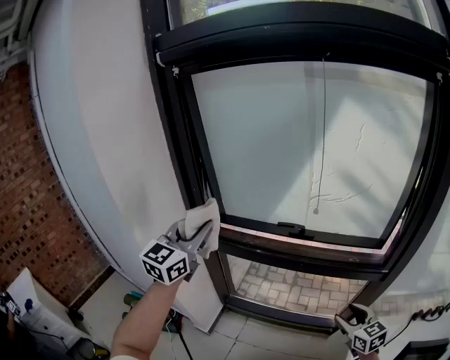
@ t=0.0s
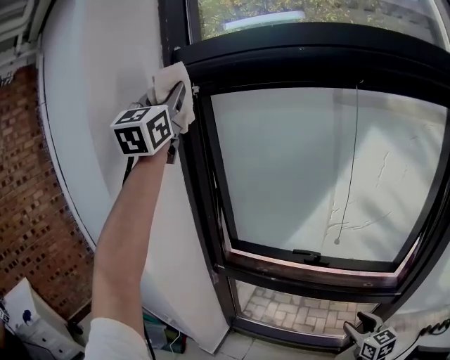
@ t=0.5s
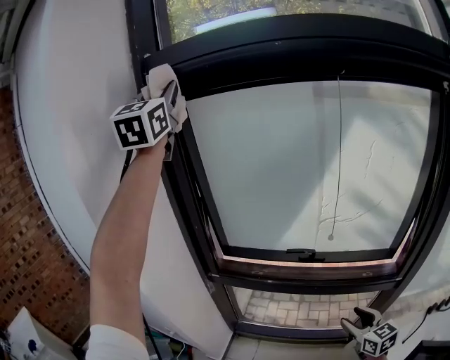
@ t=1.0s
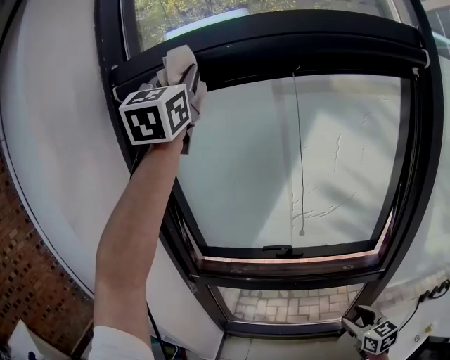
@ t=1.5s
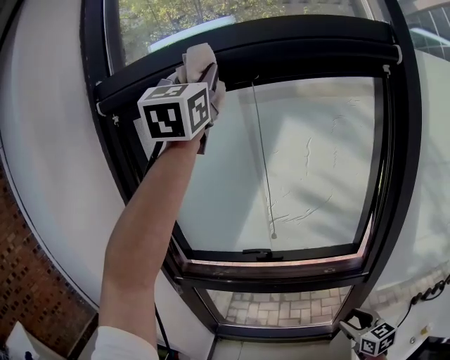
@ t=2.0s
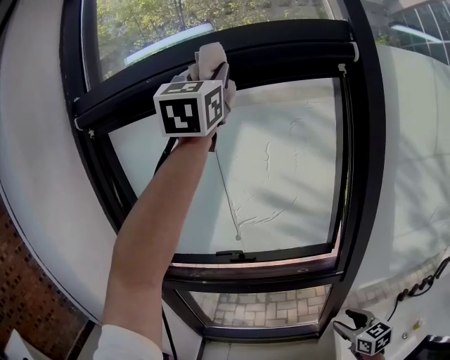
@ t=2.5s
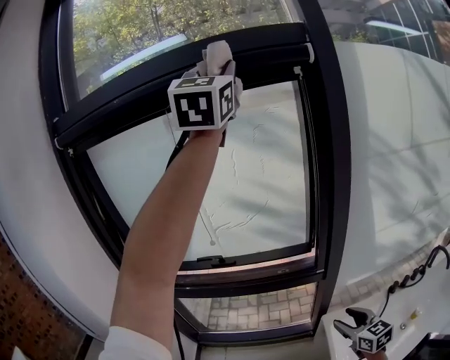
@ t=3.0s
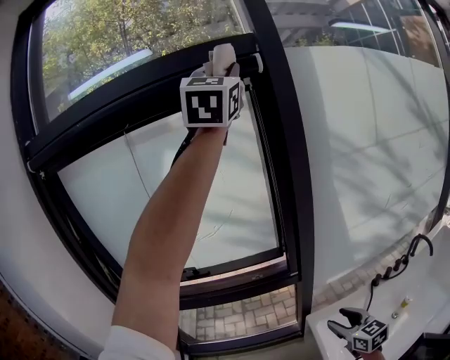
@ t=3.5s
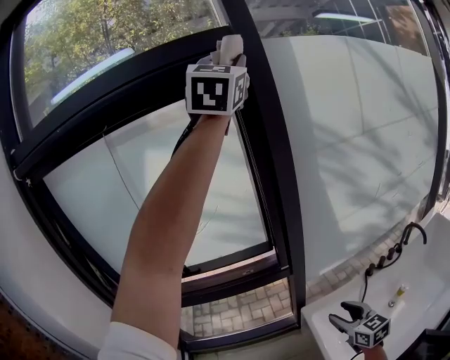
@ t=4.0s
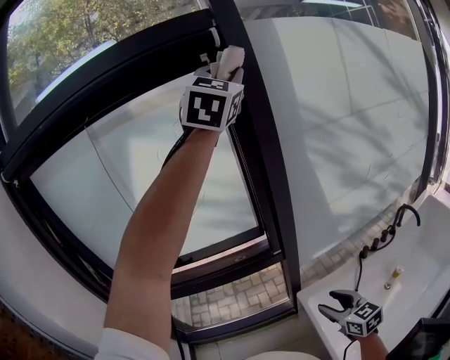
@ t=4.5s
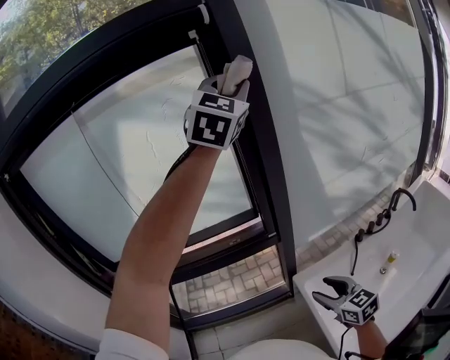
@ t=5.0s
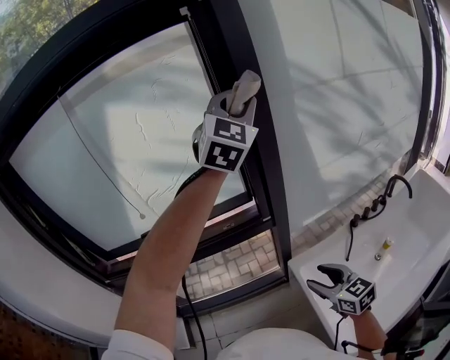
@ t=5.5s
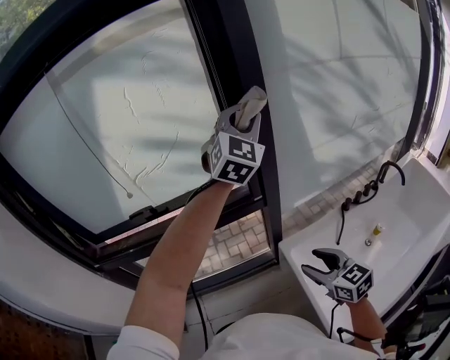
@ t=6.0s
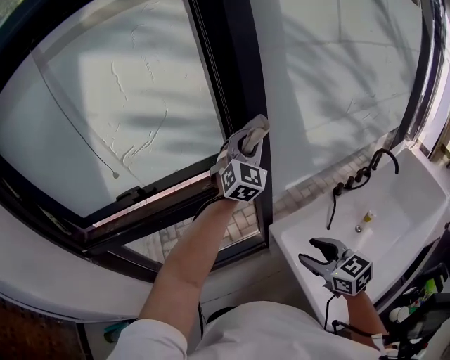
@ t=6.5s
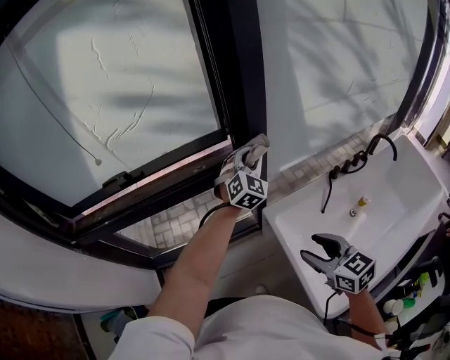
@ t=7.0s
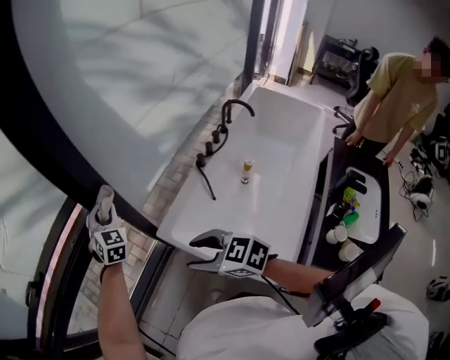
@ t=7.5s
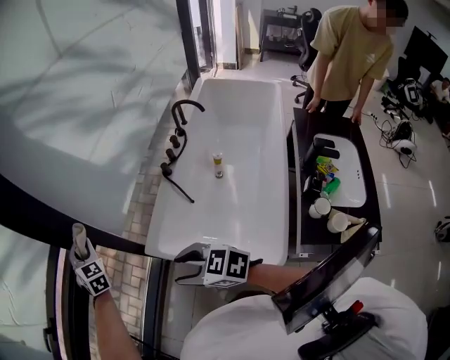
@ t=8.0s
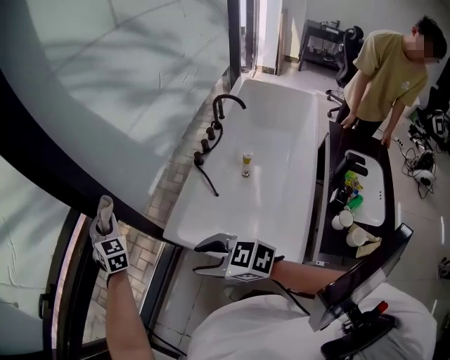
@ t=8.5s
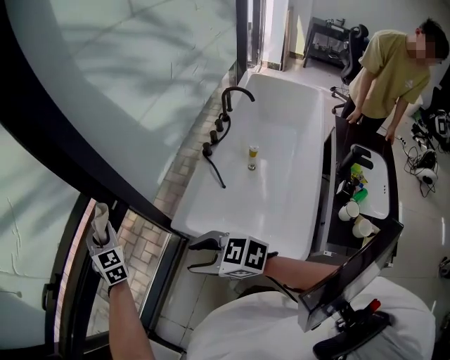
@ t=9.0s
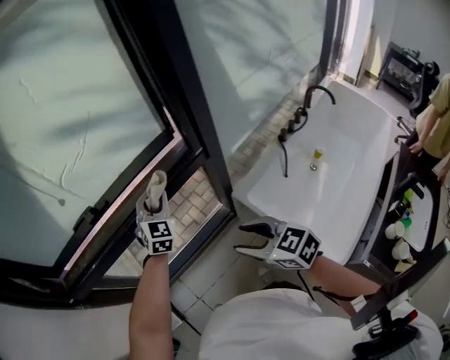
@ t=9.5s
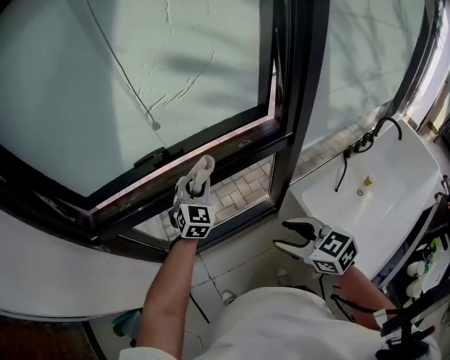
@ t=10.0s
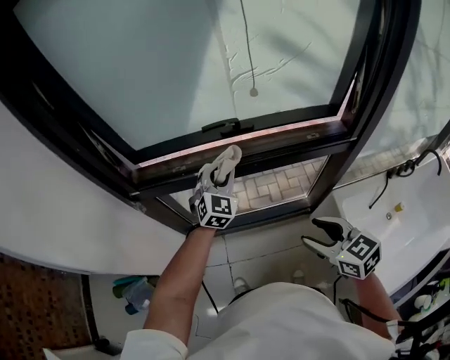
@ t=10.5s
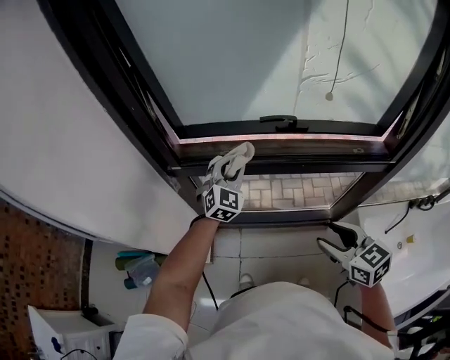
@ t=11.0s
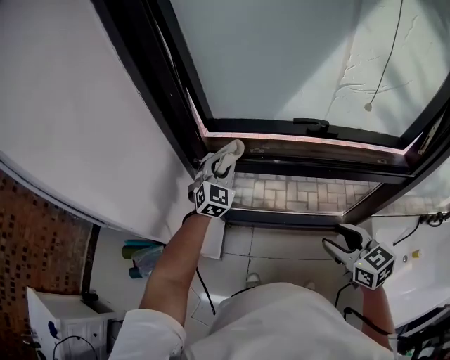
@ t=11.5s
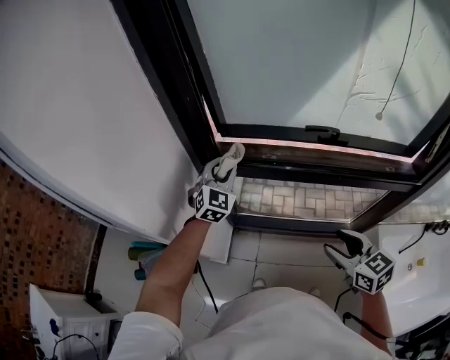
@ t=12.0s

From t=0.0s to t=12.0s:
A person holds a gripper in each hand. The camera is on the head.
From t=0.0s to t=2.0s: The right gripper moves to the right, some 5 cm, while the left gripper travels upward and to the right by some 50 cm, and rotates roughly 30 degrees.
From t=2.0s to t=4.0s: The right gripper is displaced to the right and backward by roughly 20 cm. The left gripper shifts roughly 40 cm to the right, and swivels about 20 degrees.
From t=4.0s to t=6.0s: The left gripper heads downward, covering approximately 35 cm.
From t=6.0s to t=8.0s: The right gripper goes about 5 cm downward. Meanwhile the left gripper goes about 35 cm downward, and rotates roughly 20 degrees.
From t=8.0s to t=10.0s: Both grippers travel together to the left, approximately 25 cm.
From t=10.0s to t=12.0s: The left gripper travels to the left by some 40 cm, and changes its angle by some 20 degrees; the right gripper shifts about 20 cm to the left and forward.

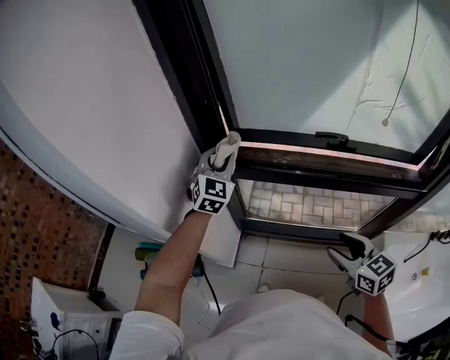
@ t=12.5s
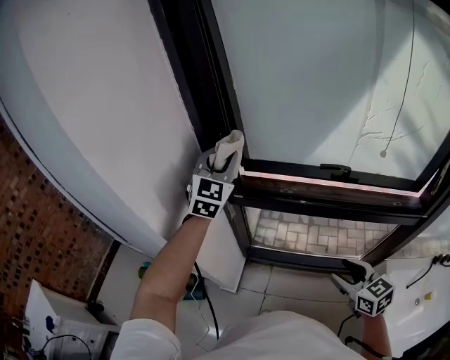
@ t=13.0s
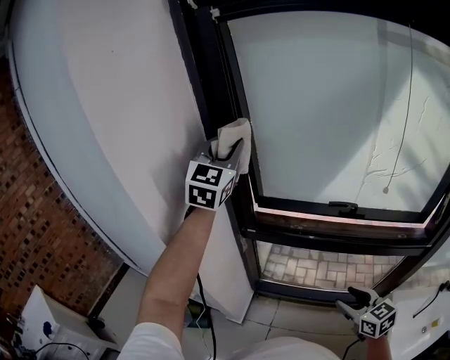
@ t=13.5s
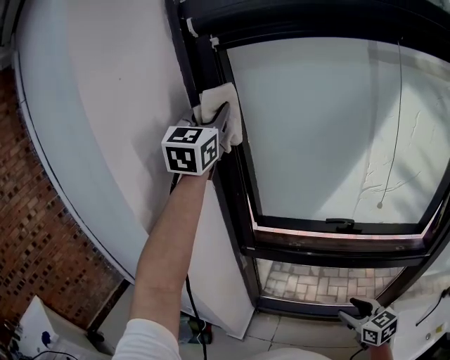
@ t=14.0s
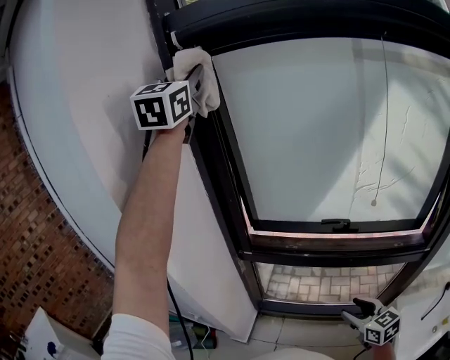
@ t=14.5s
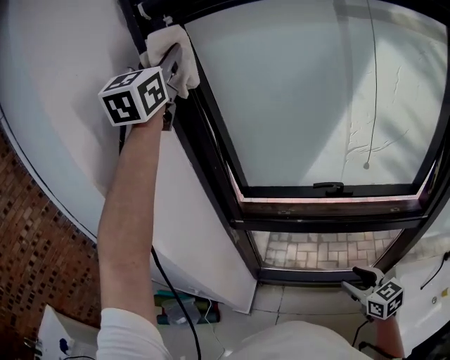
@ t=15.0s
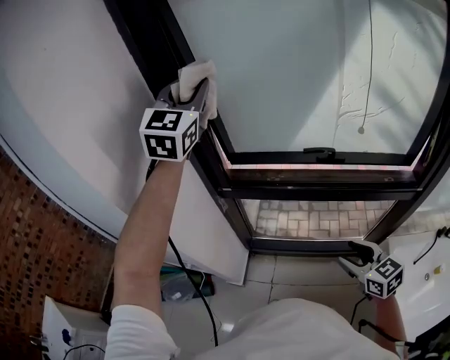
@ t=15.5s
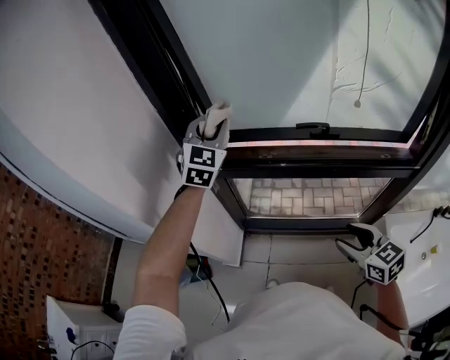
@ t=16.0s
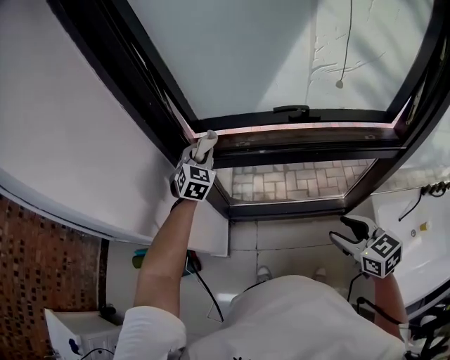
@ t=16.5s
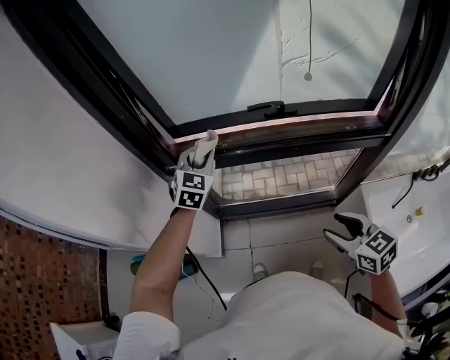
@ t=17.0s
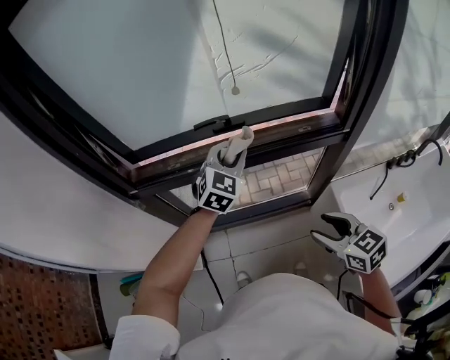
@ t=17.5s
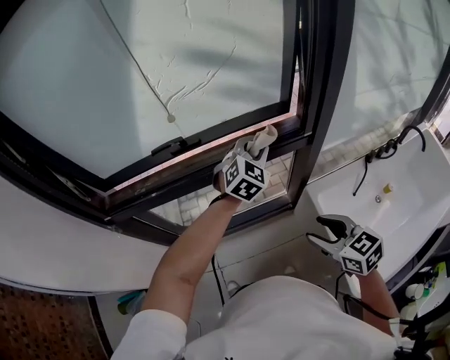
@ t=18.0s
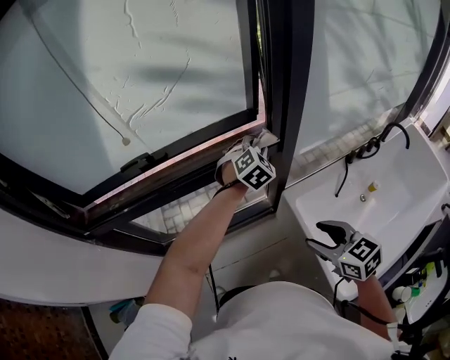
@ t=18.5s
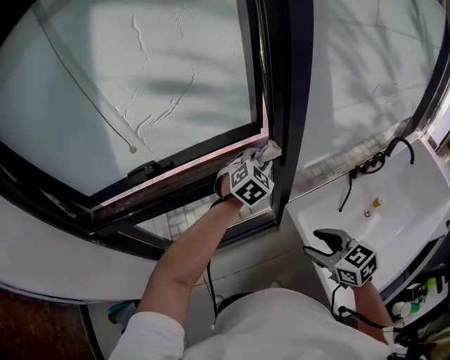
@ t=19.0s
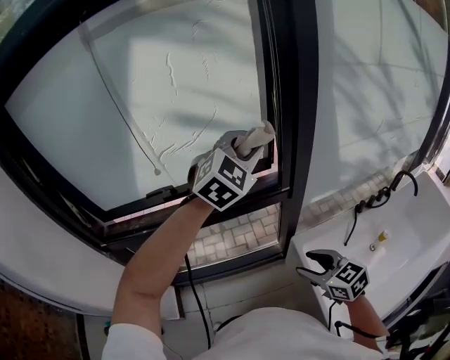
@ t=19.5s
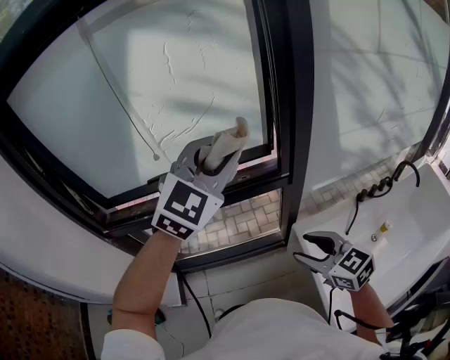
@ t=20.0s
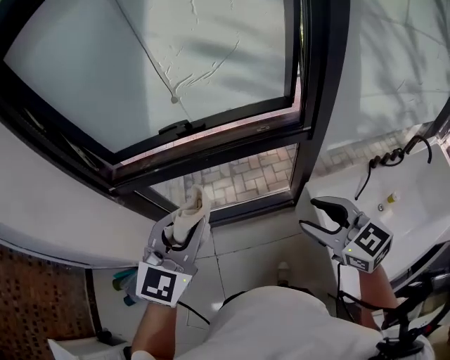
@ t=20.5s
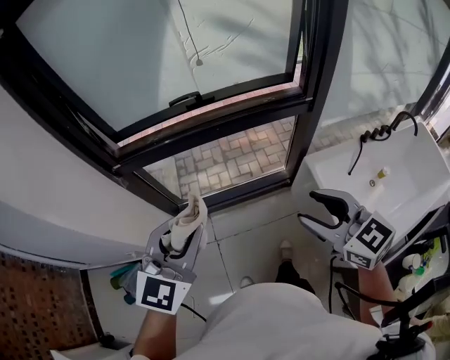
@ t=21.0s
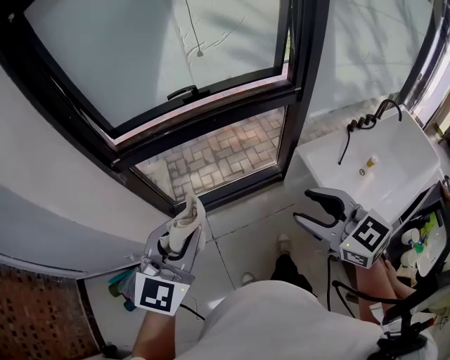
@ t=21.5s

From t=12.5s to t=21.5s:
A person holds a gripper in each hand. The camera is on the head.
From t=12.5s to t=14.5s: The left gripper heads upward, covering approximately 60 cm, and tilts its fingers approximately 30 degrees upward.
From t=14.5s to t=17.0s: The left gripper moves downward, about 60 cm, and tilts its fingers some 40 degrees downward. The right gripper heads backward, covering roughly 5 cm.
From t=17.0s to t=19.5s: The left gripper shifts about 50 cm to the right, and rotates some 40 degrees. The right gripper goes roughly 25 cm to the right.
From t=19.5s to t=21.5s: The left gripper travels to the left and backward by some 50 cm, and changes its angle by approximately 30 degrees; the right gripper goes roughly 30 cm to the left, backward and upward.

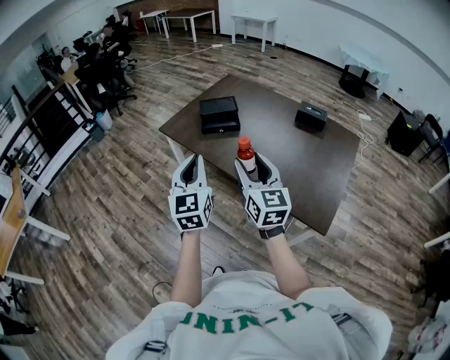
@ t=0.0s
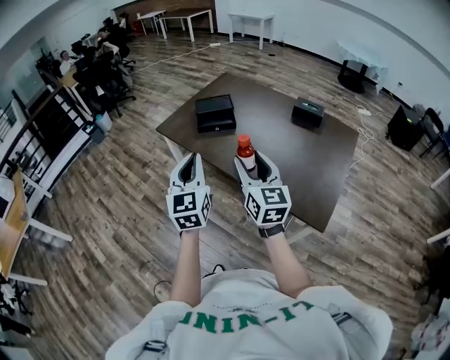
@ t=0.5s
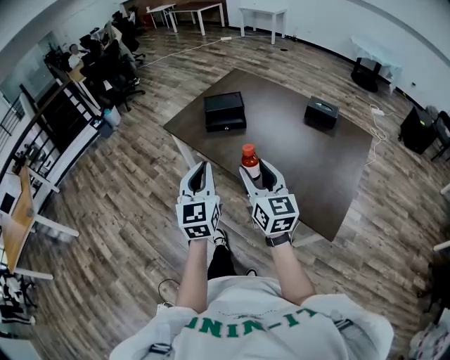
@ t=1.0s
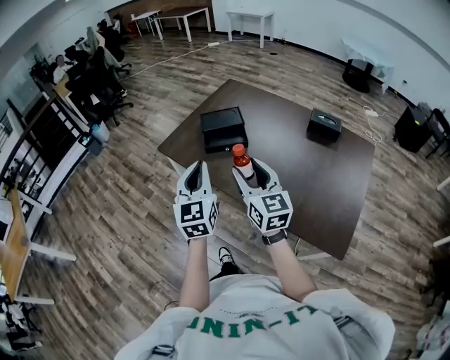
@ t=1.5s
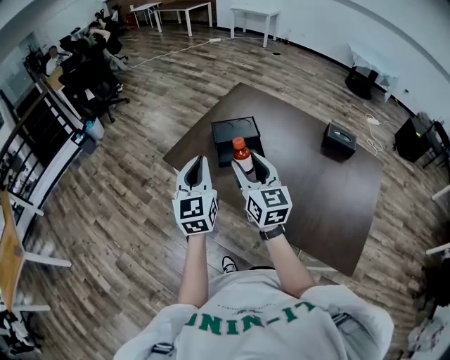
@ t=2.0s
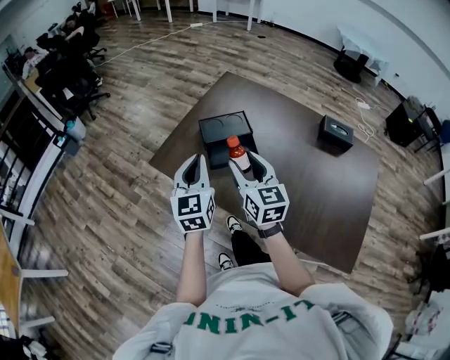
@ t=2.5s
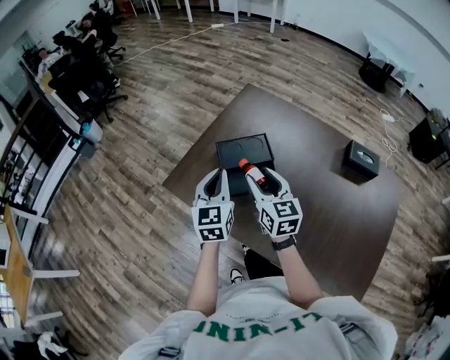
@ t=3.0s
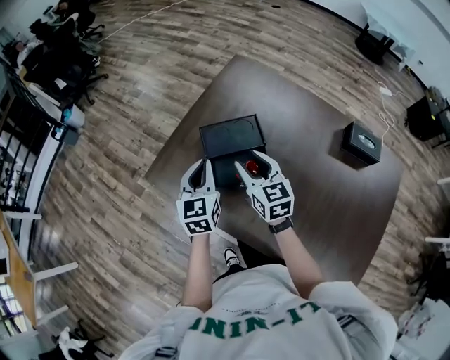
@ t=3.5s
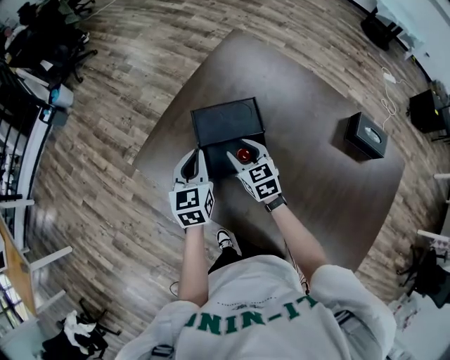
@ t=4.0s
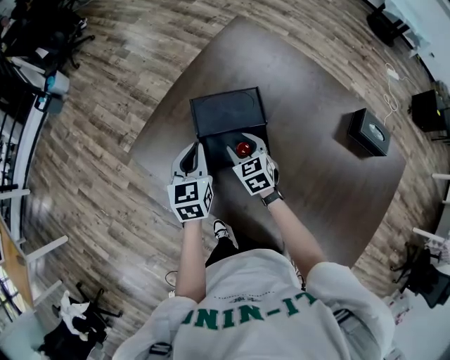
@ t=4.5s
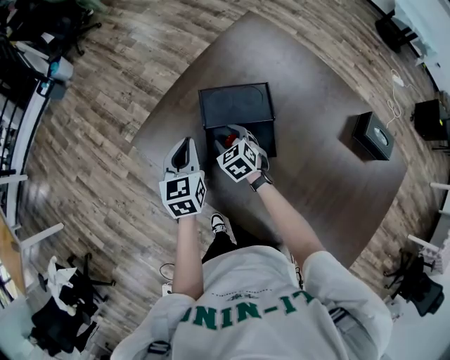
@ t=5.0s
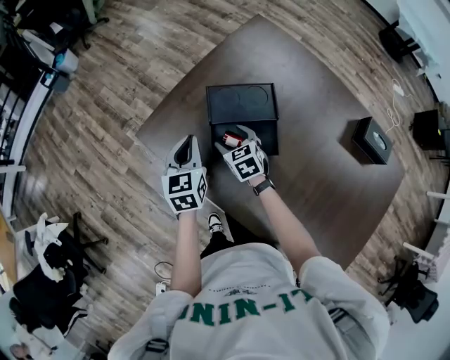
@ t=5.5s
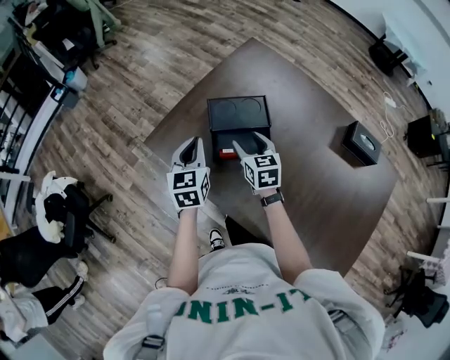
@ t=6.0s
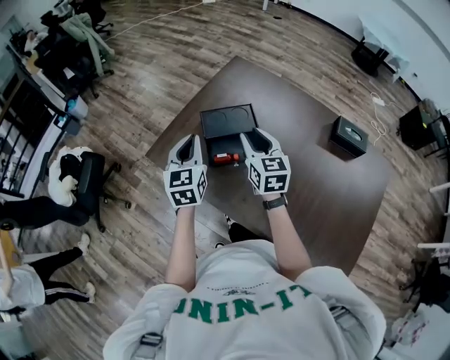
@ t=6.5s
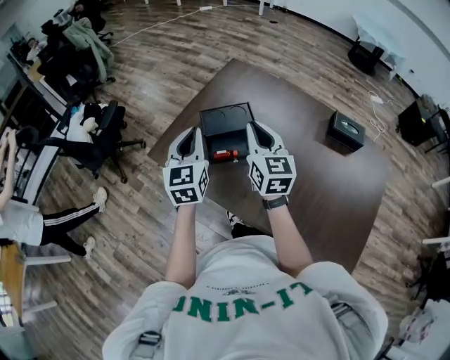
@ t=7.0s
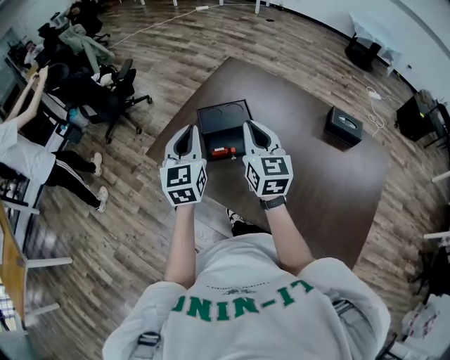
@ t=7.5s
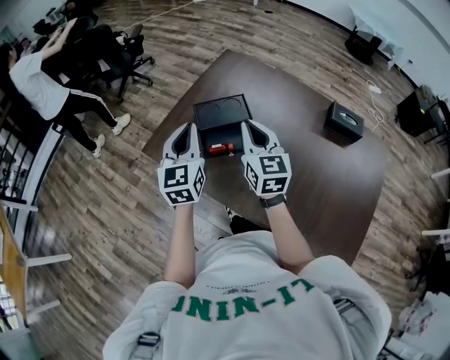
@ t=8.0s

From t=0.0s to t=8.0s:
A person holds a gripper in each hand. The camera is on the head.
From t=0.0s to t=2.0s: Both grippers move forward, roughly 35 cm.
From t=2.0s to t=4.0s: Both grippers travel together forward and downward, about 40 cm. The left gripper rotates some 30 degrees; the right gripper angles its fingers downward, by roughly 30 degrees.
From t=4.0s to t=6.0s: The left gripper goes approximately 5 cm to the left.
From t=6.0s to t=8.0s: Both grippers move upward and backward, about 20 cm. The right gripper turns by approximately 20 degrees, and closes its fingers.
